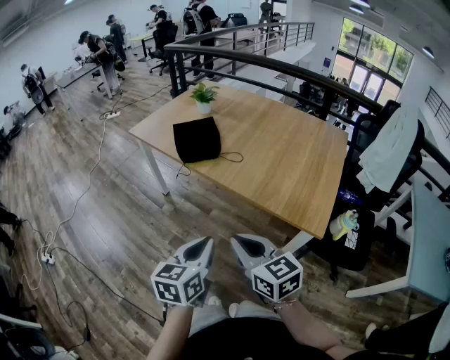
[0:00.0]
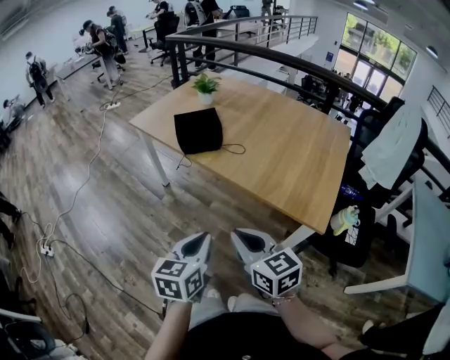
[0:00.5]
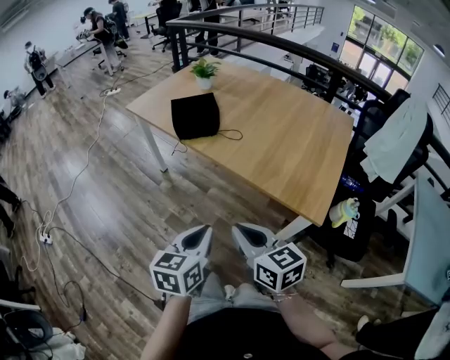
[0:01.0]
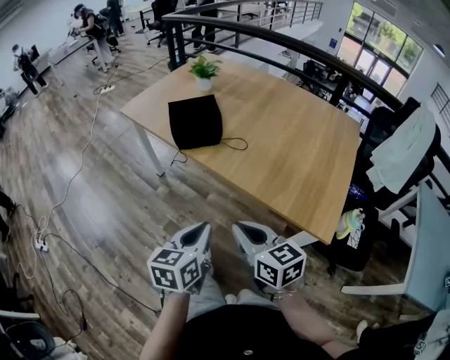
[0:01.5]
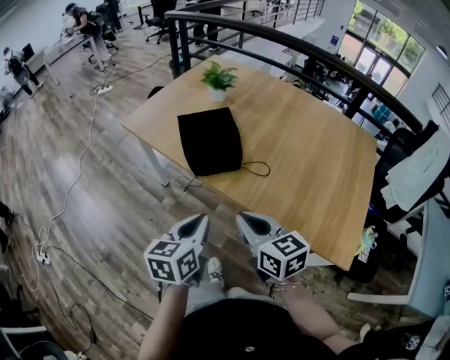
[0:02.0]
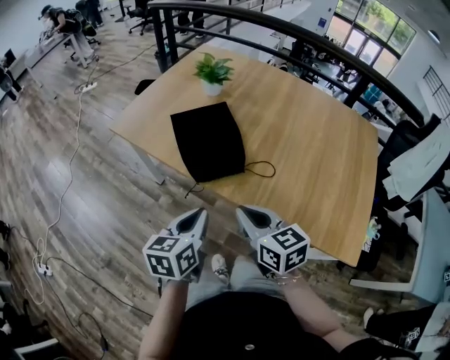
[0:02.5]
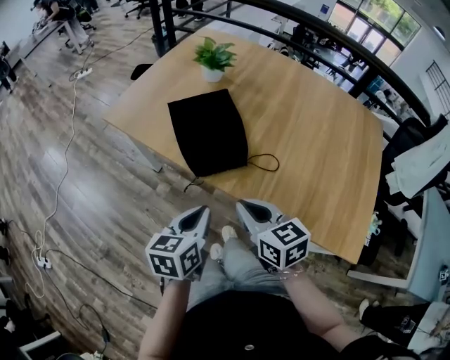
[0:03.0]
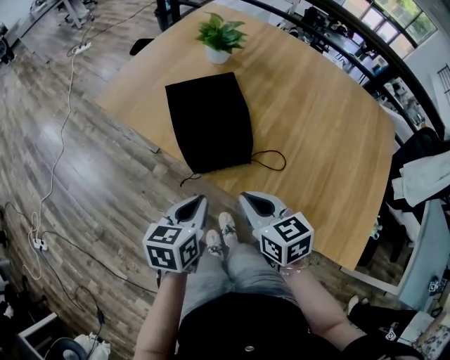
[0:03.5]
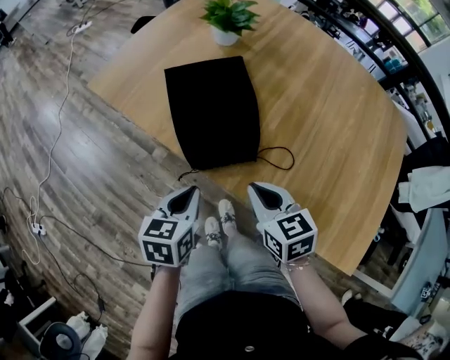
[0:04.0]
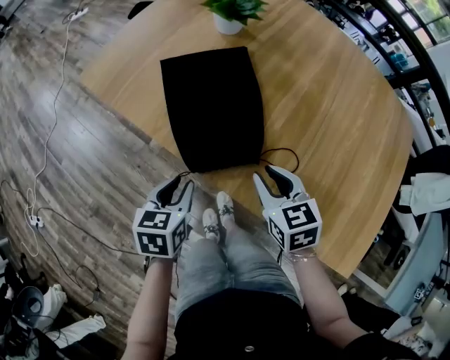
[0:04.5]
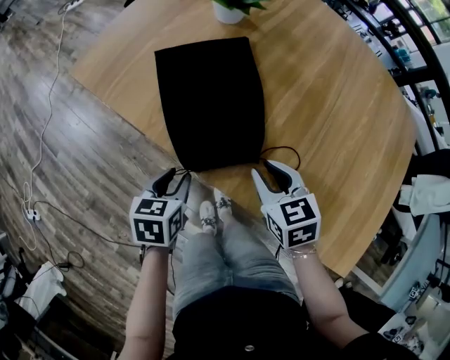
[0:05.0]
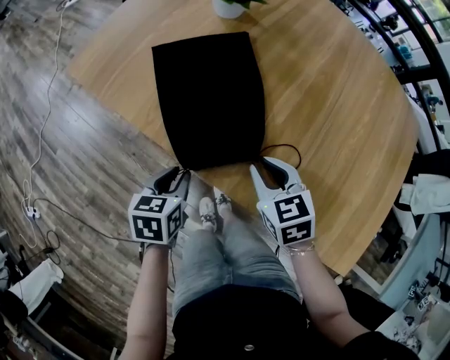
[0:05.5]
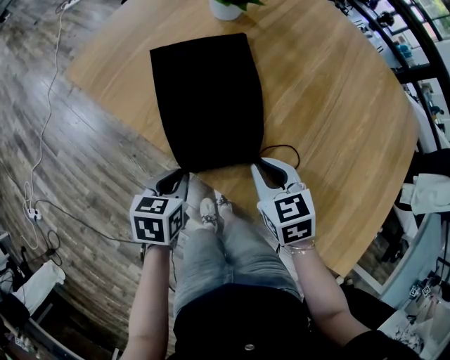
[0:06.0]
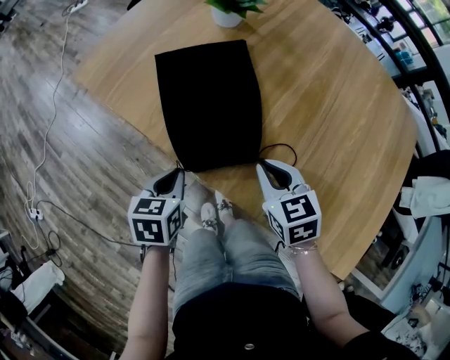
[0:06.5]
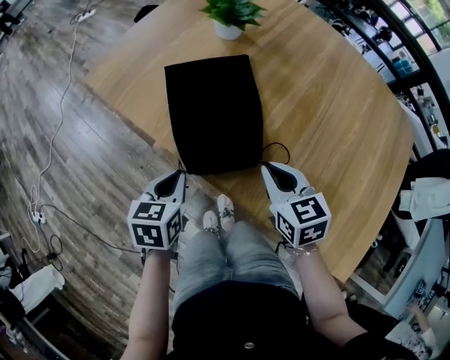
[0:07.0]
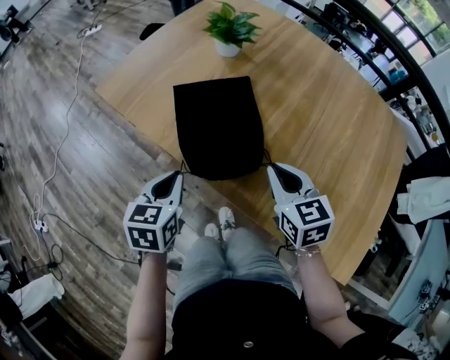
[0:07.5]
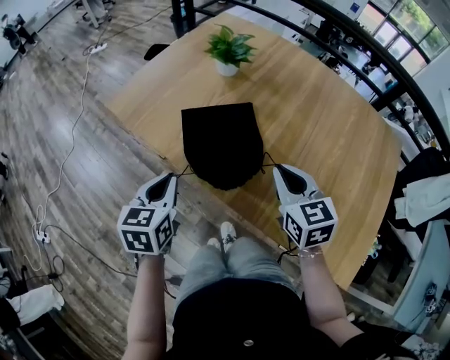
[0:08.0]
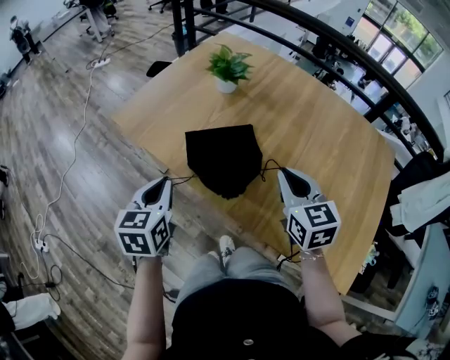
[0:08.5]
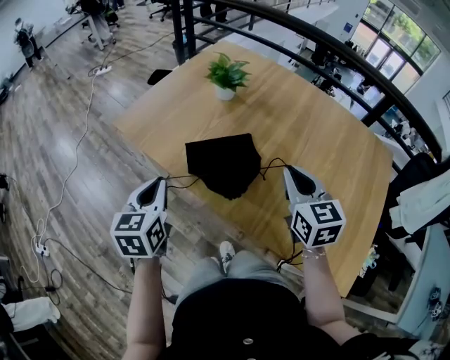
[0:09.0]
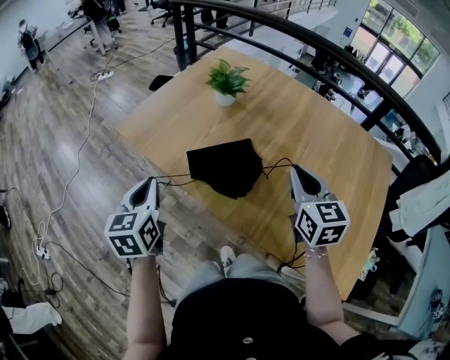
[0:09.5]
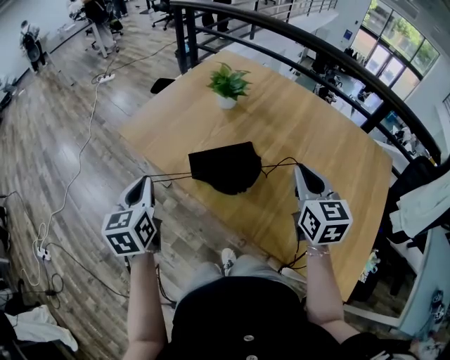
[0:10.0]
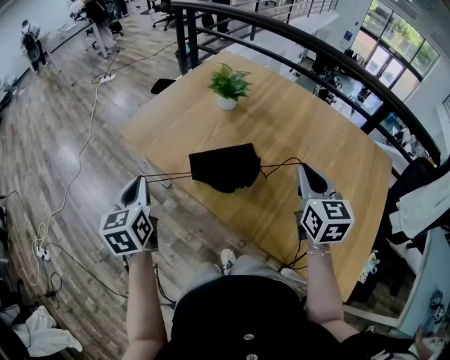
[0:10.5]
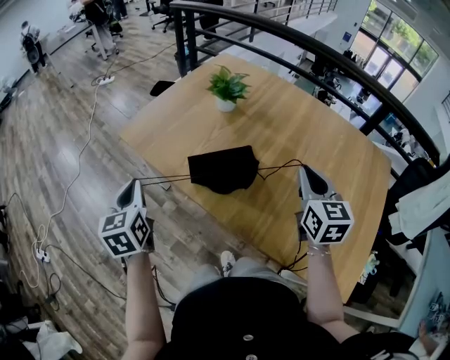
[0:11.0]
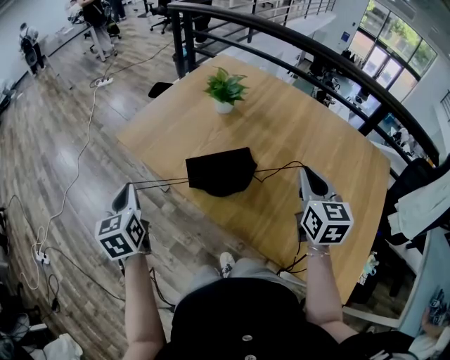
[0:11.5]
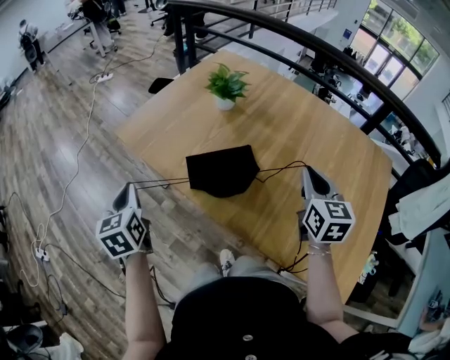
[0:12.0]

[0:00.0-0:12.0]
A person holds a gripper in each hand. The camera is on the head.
0:00.0 to 0:02.0: Both grippers travel together forward, about 25 cm.
0:02.0 to 0:04.0: Both grippers travel together forward and downward, roughly 20 cm.
0:04.0 to 0:06.0: The left gripper is displaced downward by some 10 cm, while the right gripper is displaced forward and downward by about 10 cm.
0:06.0 to 0:08.0: The two grippers go some 15 cm upward. The right gripper turns by about 20 degrees. Meanwhile the left gripper turns by roughly 20 degrees.
0:08.0 to 0:10.0: The left gripper heads upward and to the left, covering approximately 10 cm. Meanwhile the right gripper heads upward and to the right, covering approximately 10 cm.
0:10.0 to 0:12.0: The left gripper goes some 5 cm to the left.

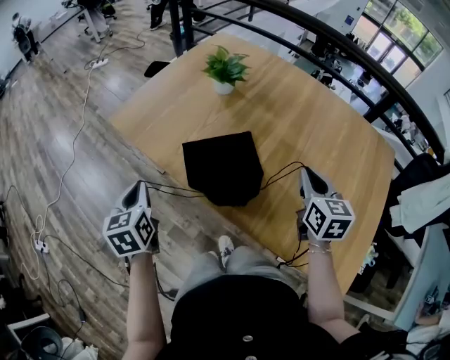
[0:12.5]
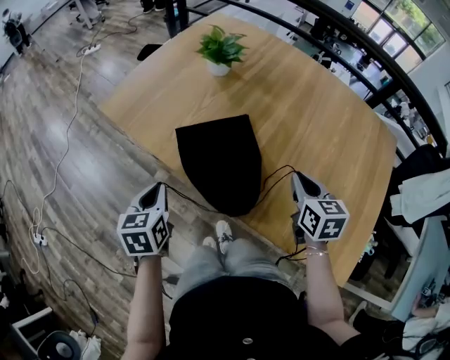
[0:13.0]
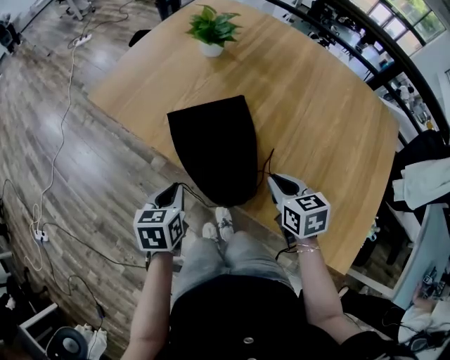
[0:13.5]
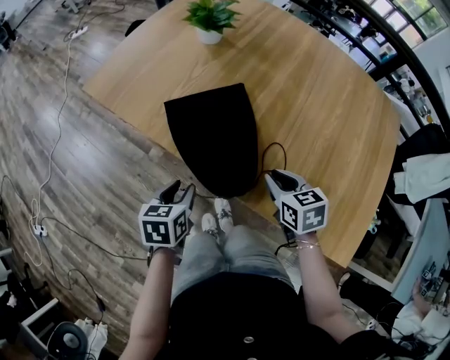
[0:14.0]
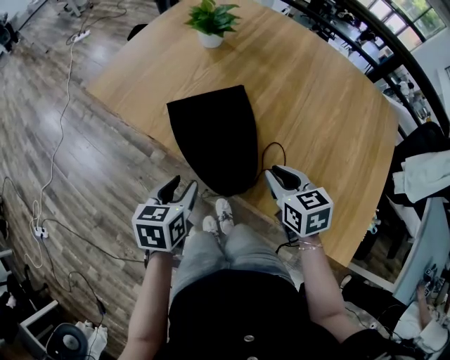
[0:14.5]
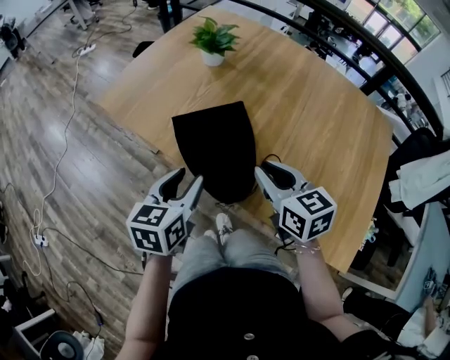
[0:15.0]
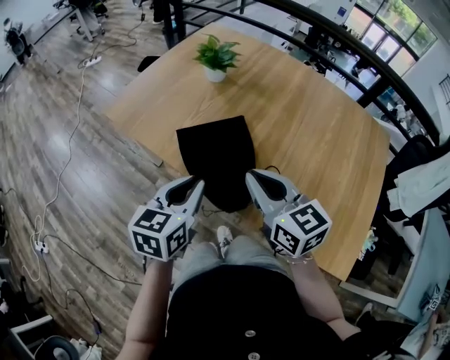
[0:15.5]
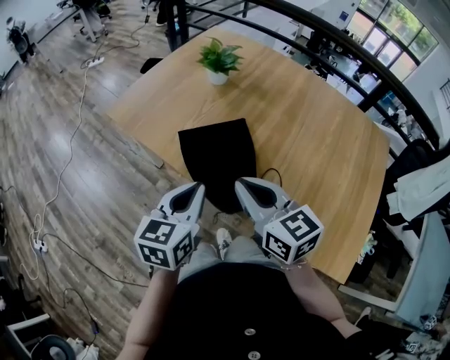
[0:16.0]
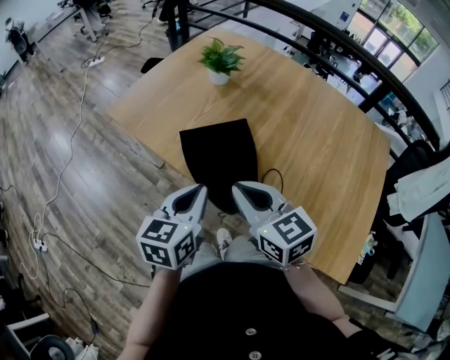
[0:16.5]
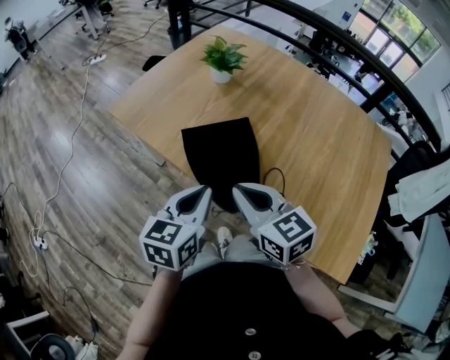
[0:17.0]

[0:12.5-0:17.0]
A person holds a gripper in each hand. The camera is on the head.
0:12.5 to 0:14.5: The right gripper shifts about 15 cm downward, backward and to the left, and changes its angle by about 20 degrees; the left gripper shifts some 20 cm to the right, downward and backward, turns by roughly 30 degrees, and opens its fingers.
0:14.5 to 0:17.0: The left gripper goes some 10 cm upward, and closes its fingers, while the right gripper shifts about 15 cm to the left and upward, and changes its angle by approximately 20 degrees.

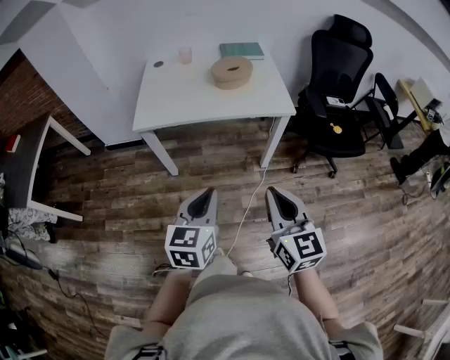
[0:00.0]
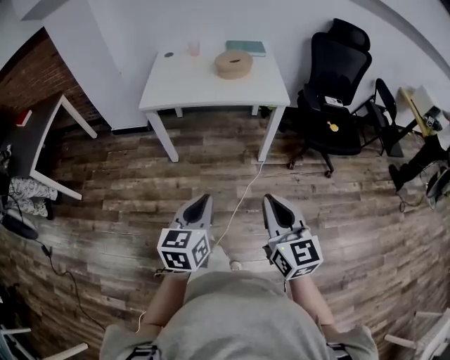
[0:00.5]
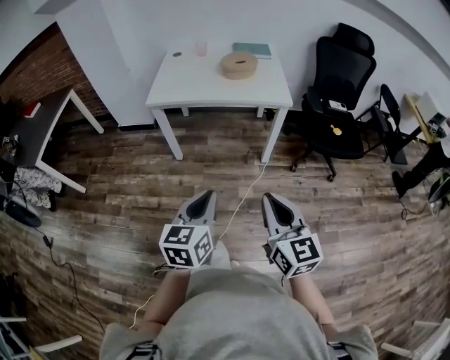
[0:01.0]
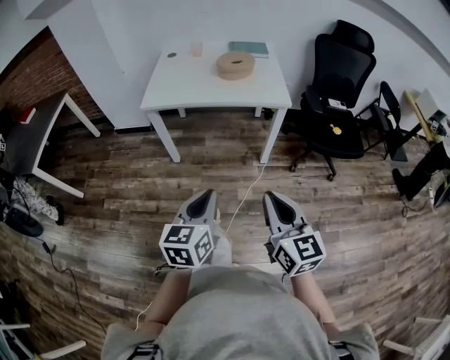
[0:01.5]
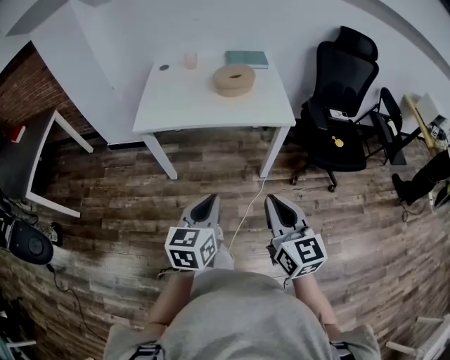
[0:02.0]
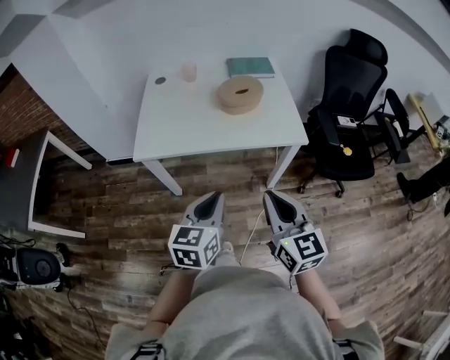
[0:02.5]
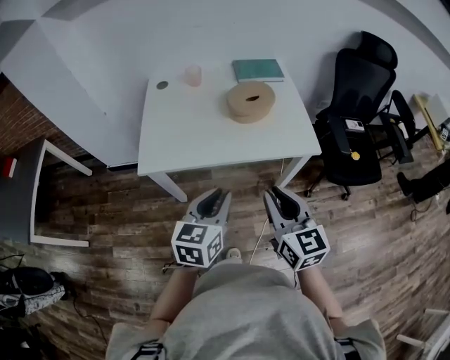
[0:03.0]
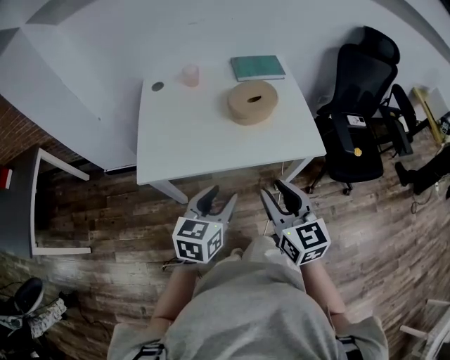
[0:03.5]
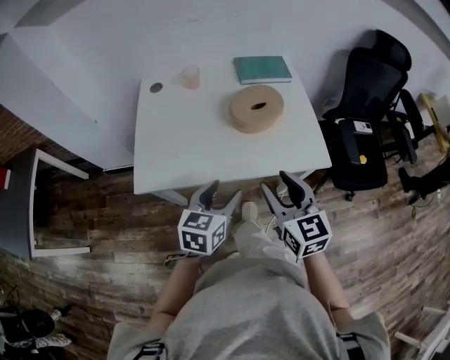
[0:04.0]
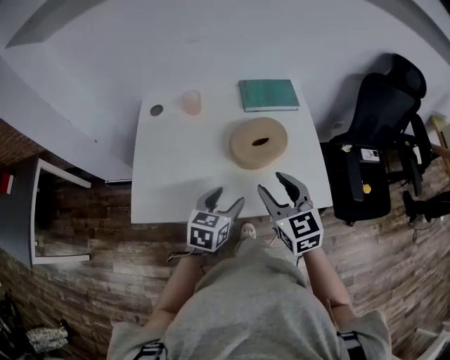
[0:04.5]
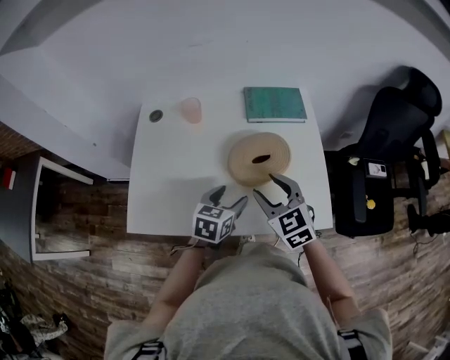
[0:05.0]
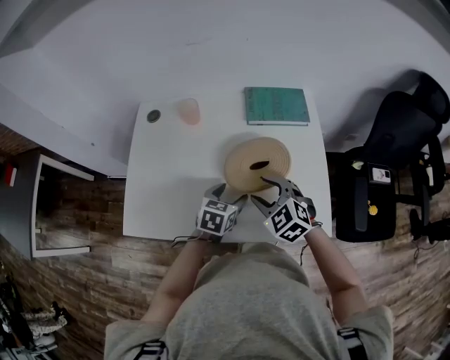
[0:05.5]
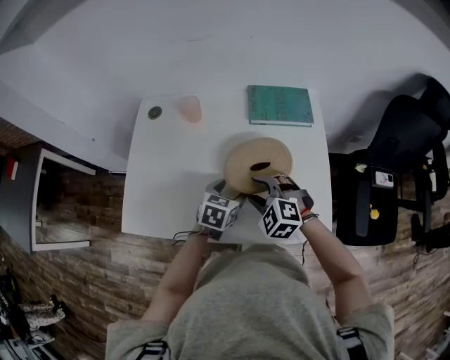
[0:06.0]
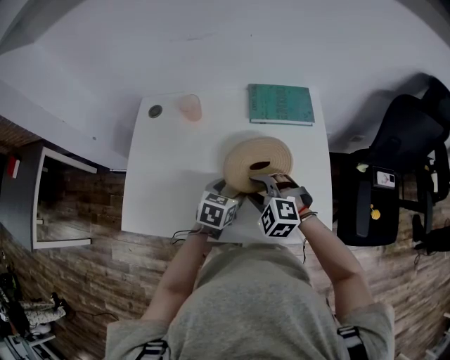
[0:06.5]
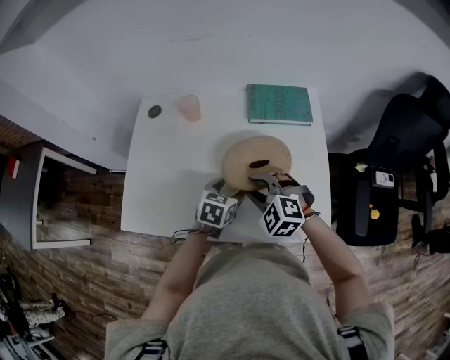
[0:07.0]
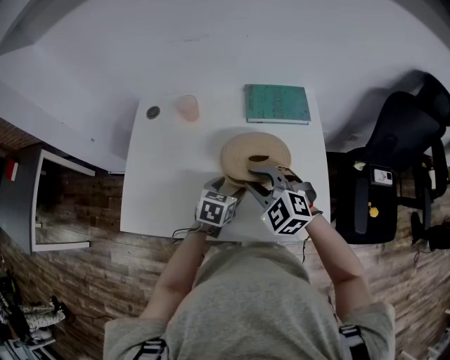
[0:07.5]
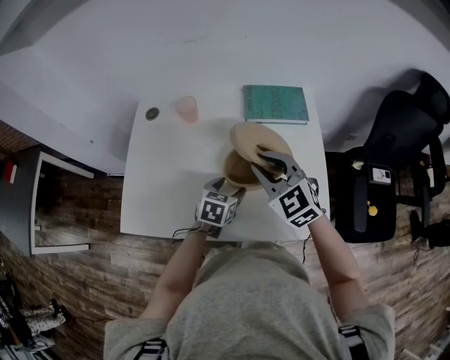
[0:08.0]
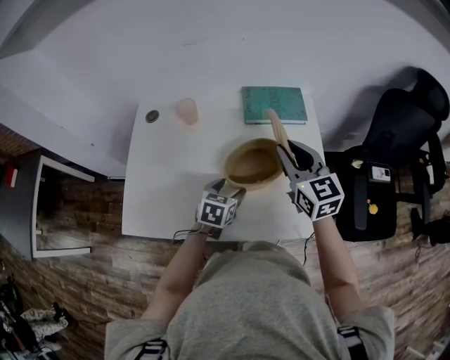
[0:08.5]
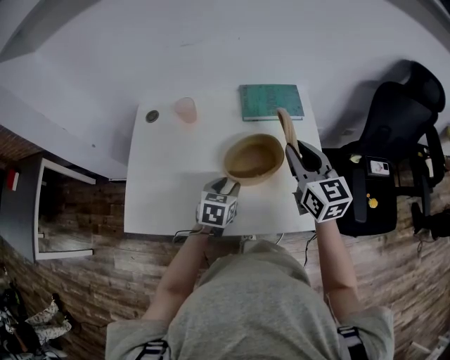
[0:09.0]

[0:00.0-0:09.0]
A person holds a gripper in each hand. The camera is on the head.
0:00.0 to 0:02.0: The left gripper reaches approximately 15 cm backward, then returns; the right gripper goes backward and returns, roughly 15 cm each way.
0:02.0 to 0:04.5: The two grippers travel together, forward, approximately 50 cm. The right gripper opens up. Meanwhile the left gripper opens.
0:04.5 to 0:07.0: The right gripper goes some 15 cm downward and forward, and rolls counterclockwise, seen from behind, by some 40 degrees, while the left gripper travels forward and downward by approximately 15 cm.
0:07.0 to 0:09.0: The right gripper is displaced upward and to the right by roughly 20 cm, and tilts its fingers some 30 degrees upward. Meanwhile the left gripper closes its fingers.

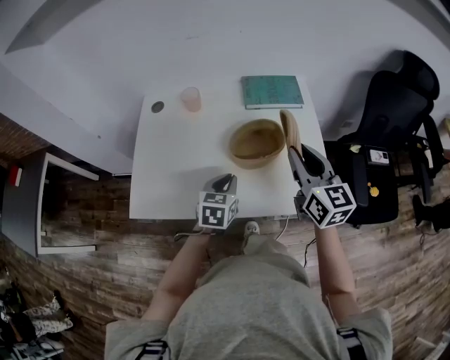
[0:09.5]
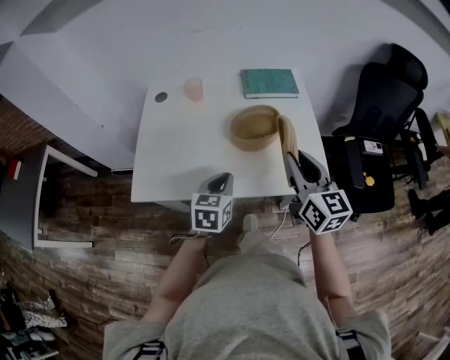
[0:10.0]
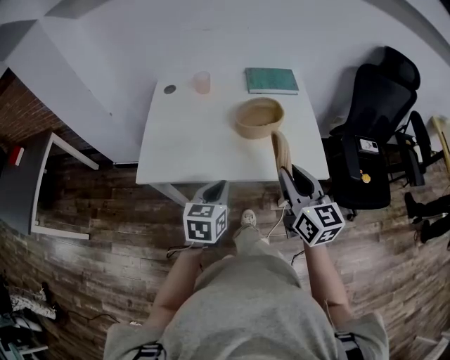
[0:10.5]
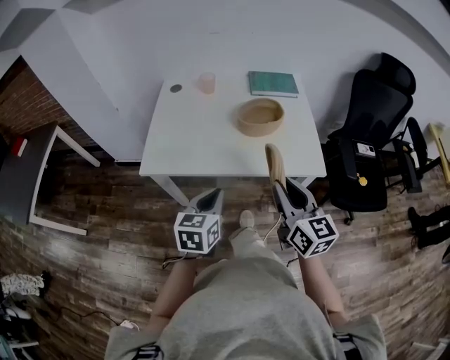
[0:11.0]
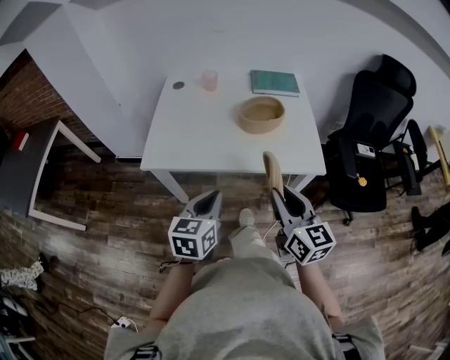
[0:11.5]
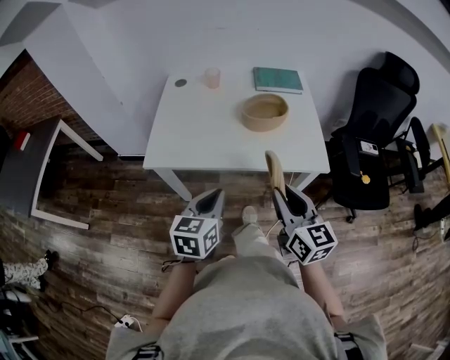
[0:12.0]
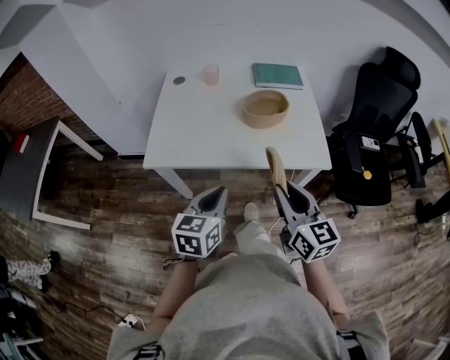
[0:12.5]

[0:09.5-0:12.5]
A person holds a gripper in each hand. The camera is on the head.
0:09.5 to 0:11.0: Both grippers move backward, about 25 cm.
0:11.0 to 0:12.5: There are only small adjustments of the grippers.
